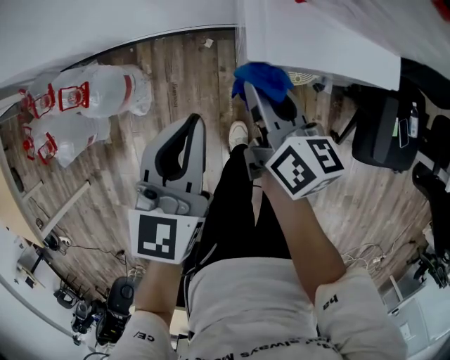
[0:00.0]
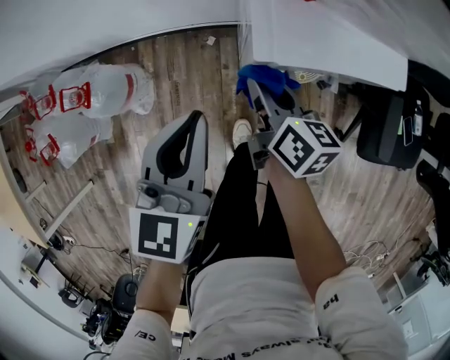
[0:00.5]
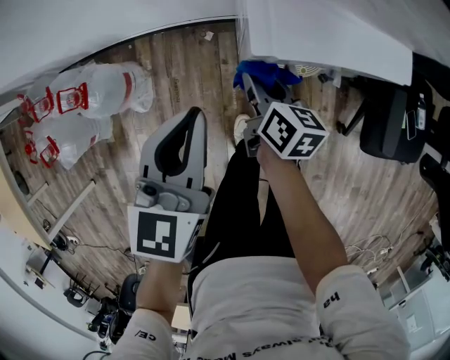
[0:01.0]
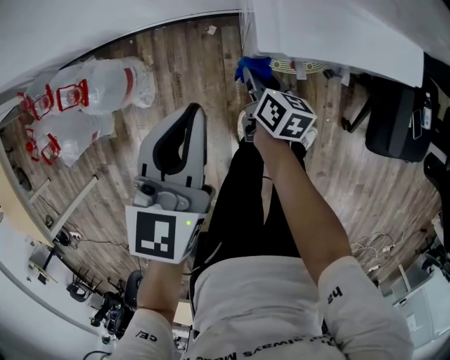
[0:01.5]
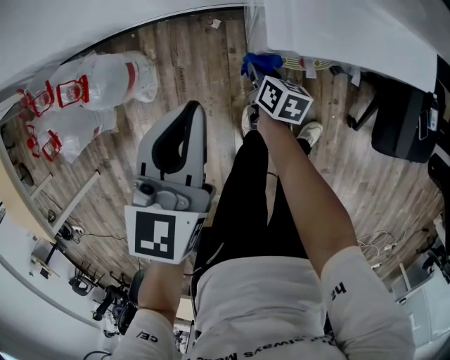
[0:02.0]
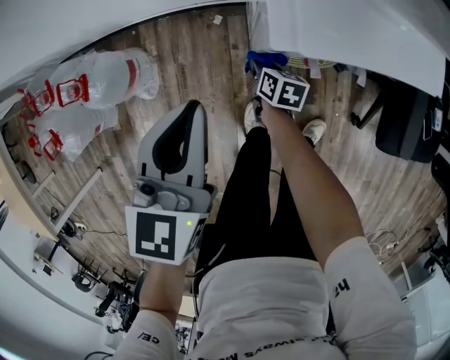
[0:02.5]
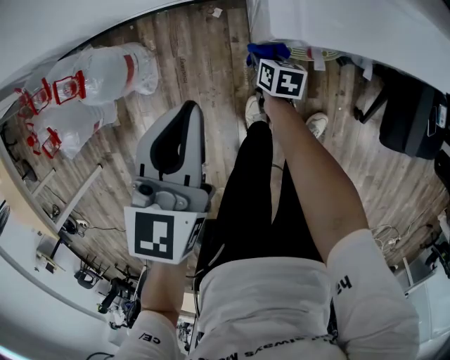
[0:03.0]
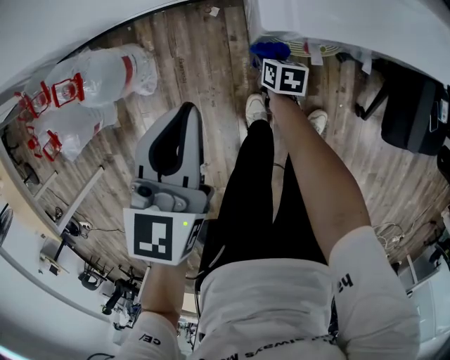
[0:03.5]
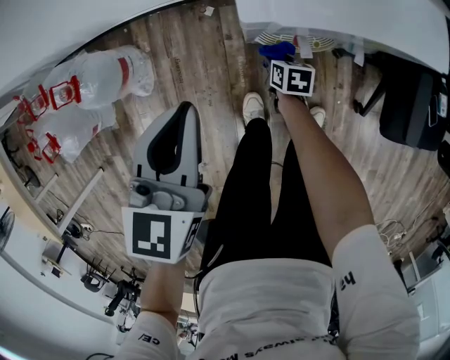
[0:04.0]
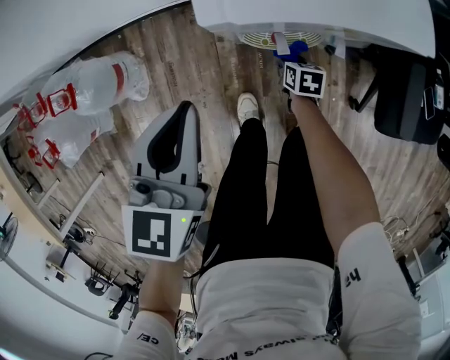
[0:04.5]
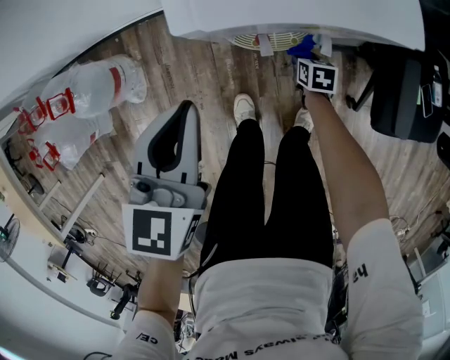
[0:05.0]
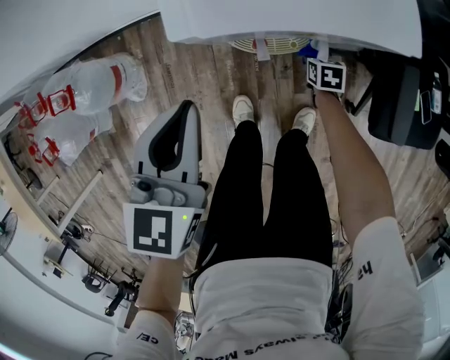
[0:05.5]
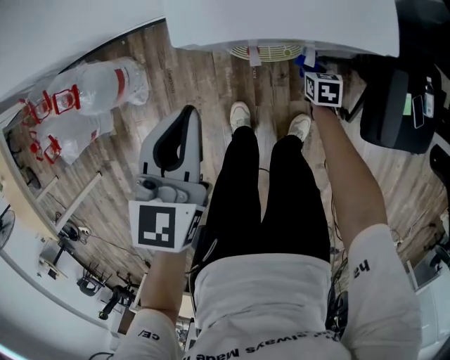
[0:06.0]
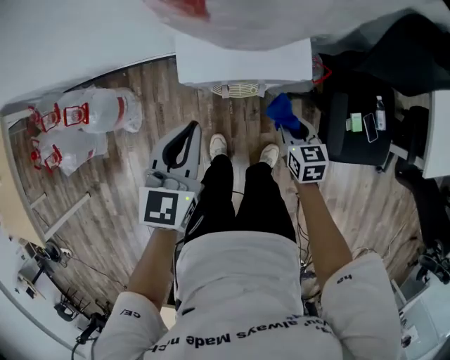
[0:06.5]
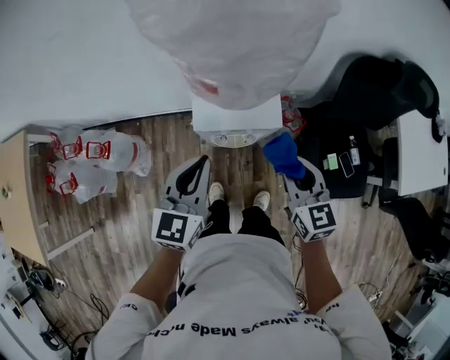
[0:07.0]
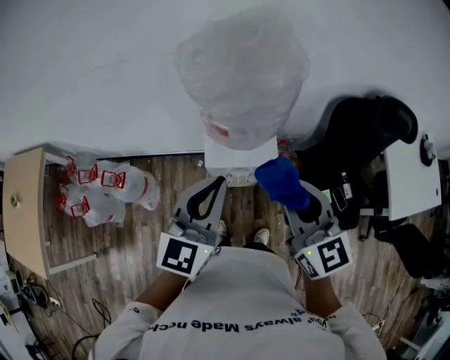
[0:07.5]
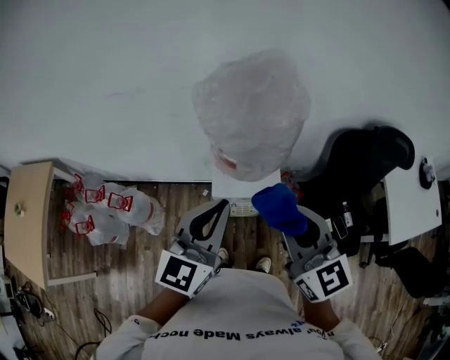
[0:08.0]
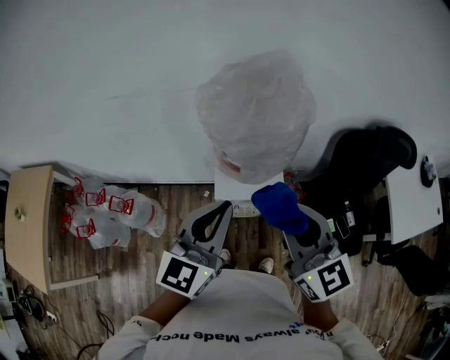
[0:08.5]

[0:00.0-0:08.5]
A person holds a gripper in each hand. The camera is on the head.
0:00.0 to 0:02.0: The right gripper is displaced downward by approximately 25 cm, and changes its angle by roughly 20 degrees.
0:02.0 to 0:04.0: The right gripper travels downward and to the right by approximately 15 cm, and rotates approximately 20 degrees.
0:04.0 to 0:06.5: The right gripper goes some 35 cm upward and to the right, and turns by approximately 30 degrees. The left gripper heads to the right and upward, covering roughly 15 cm.
0:06.5 to 0:08.5: The right gripper shifts about 50 cm upward, and points its fingers approximately 40 degrees further upward; the left gripper goes some 35 cm upward, and changes its angle by about 20 degrees.

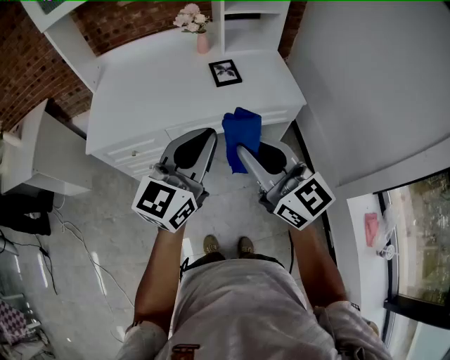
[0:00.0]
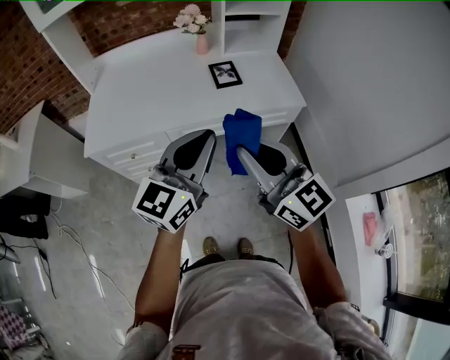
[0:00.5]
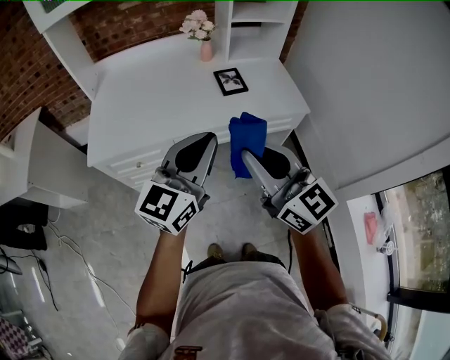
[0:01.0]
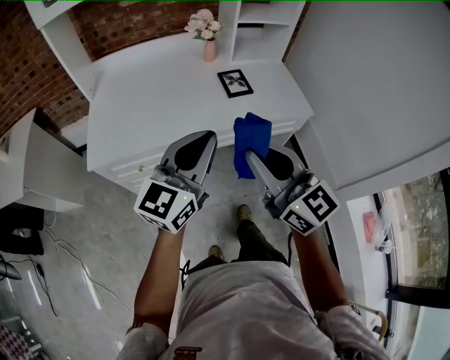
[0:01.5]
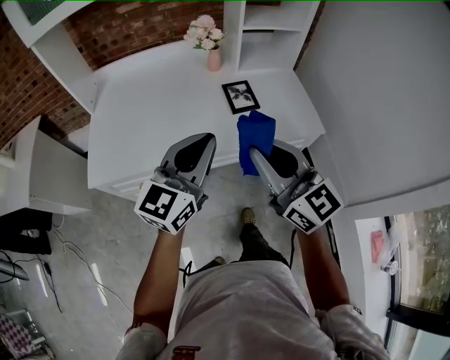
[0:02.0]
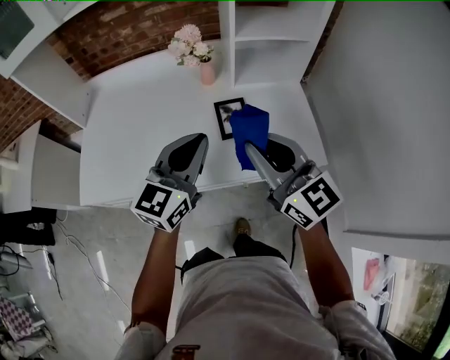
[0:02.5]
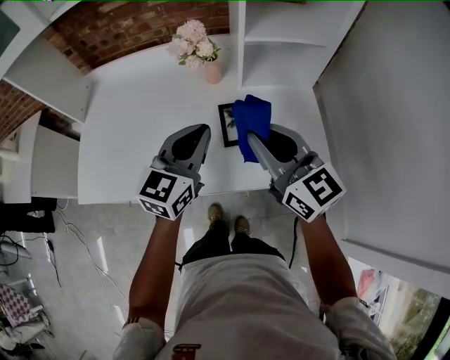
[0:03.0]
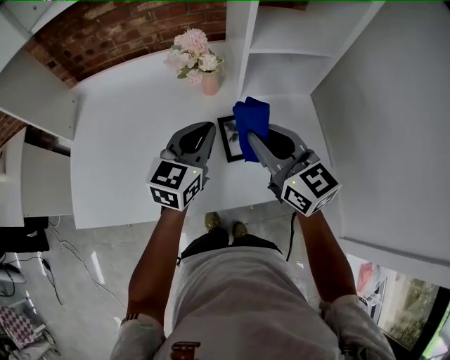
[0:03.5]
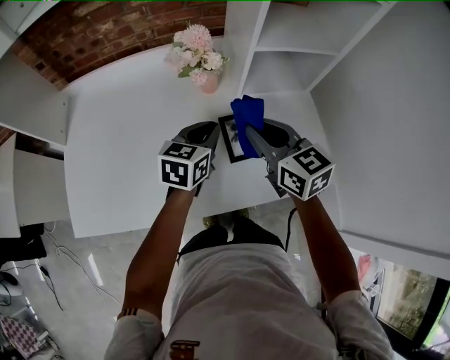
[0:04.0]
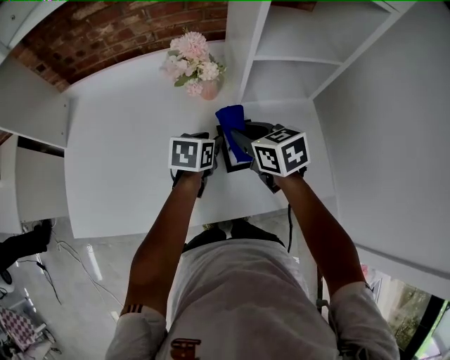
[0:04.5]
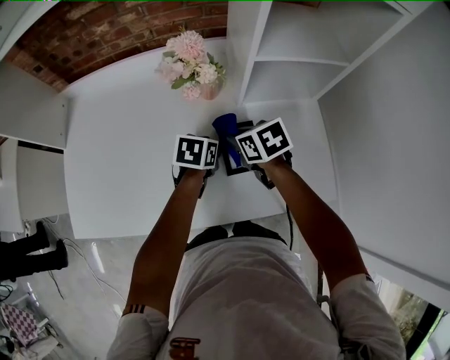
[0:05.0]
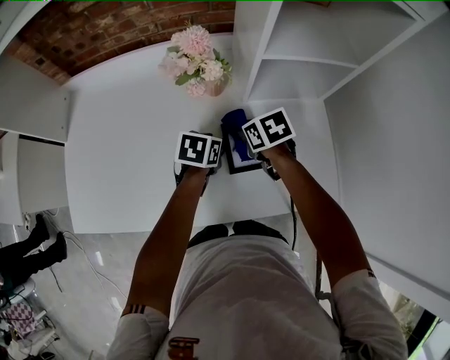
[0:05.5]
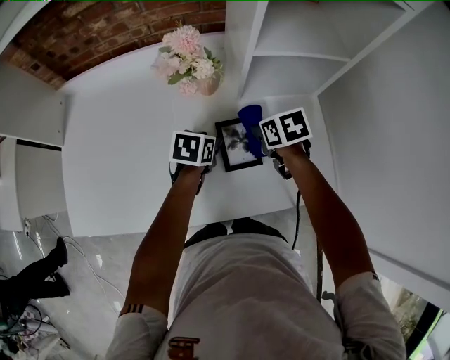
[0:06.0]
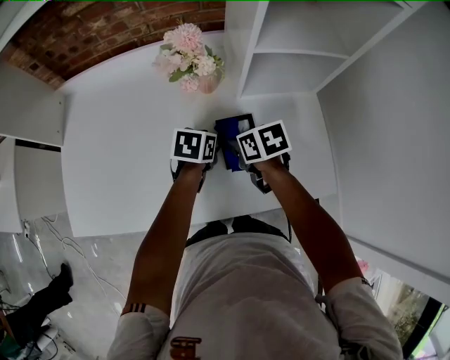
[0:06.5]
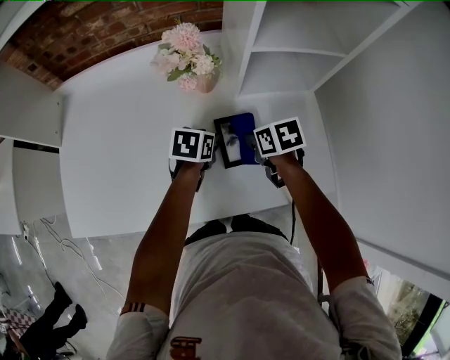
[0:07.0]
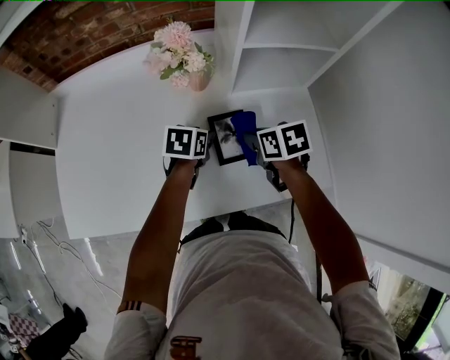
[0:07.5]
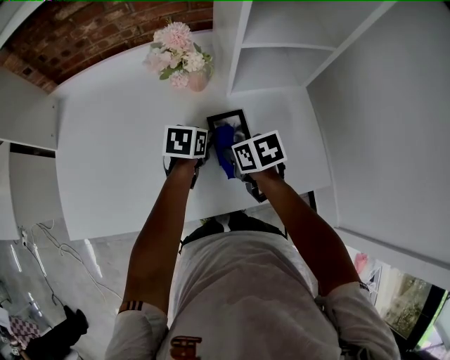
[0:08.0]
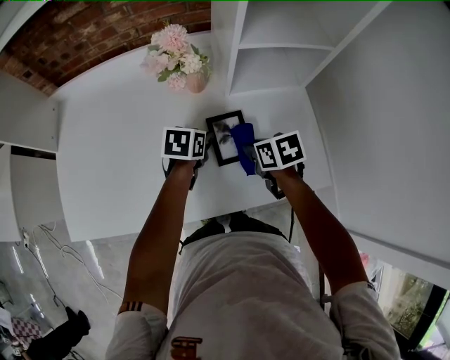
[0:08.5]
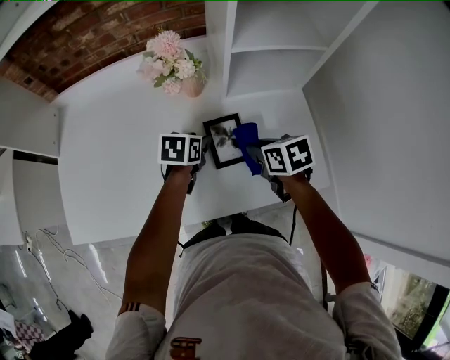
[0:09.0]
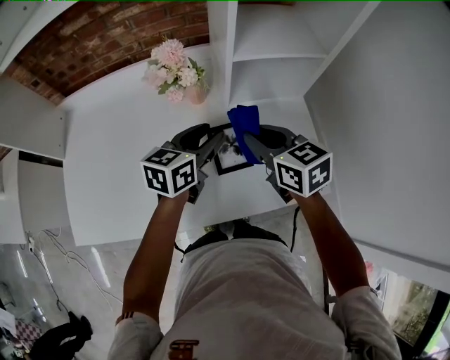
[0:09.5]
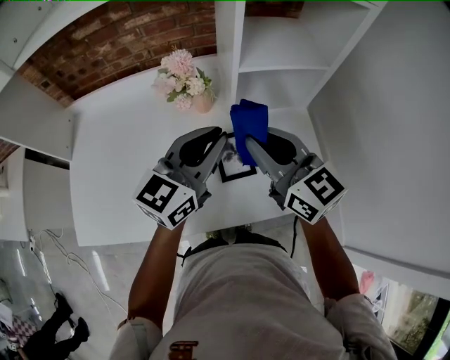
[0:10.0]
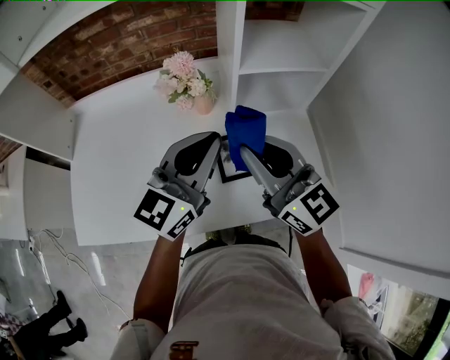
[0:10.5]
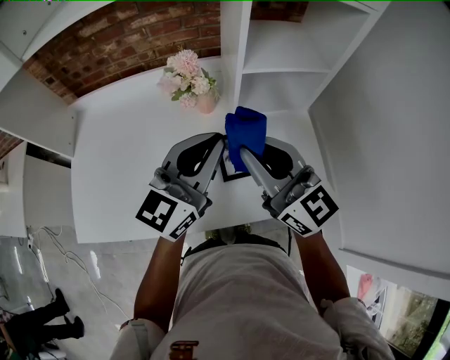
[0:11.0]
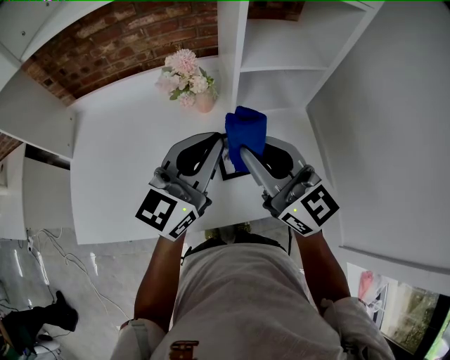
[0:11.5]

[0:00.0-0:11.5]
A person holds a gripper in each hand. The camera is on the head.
0:00.0 to 0:02.0: The right gripper goes roughly 15 cm forward, while the left gripper shifts some 15 cm forward and to the left.
0:02.0 to 0:04.0: The right gripper shifts some 30 cm forward, and changes its angle by some 20 degrees. The left gripper travels forward and downward by approximately 35 cm, and tilts its fingers roughly 30 degrees downward.
0:04.0 to 0:06.0: The left gripper shifts approximately 10 cm downward, changes its angle by roughly 30 degrees, and opens. The right gripper moves downward and forward, some 20 cm, and points its fingers roughly 40 degrees further downward.
0:06.0 to 0:07.5: The right gripper heads backward, covering roughly 5 cm.
0:07.5 to 0:09.5: Both grippers travel together upward, about 15 cm. The left gripper tilts its fingers some 30 degrees upward; the right gripper changes its angle by about 30 degrees.
0:09.5 to 0:11.5: The two grippers go about 15 cm upward and backward. The right gripper tilts its fingers roughly 30 degrees upward; the left gripper turns by roughly 30 degrees, and closes.

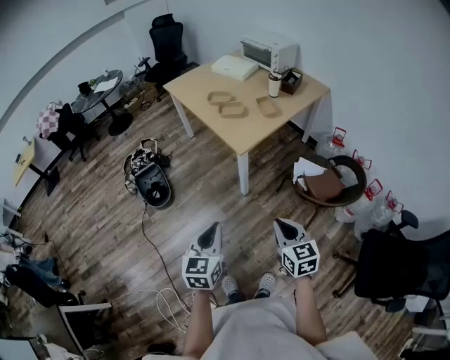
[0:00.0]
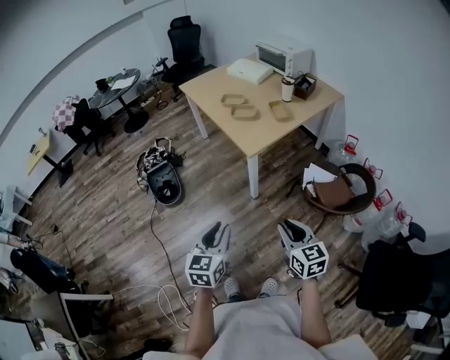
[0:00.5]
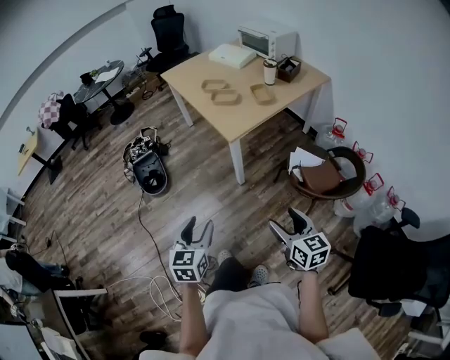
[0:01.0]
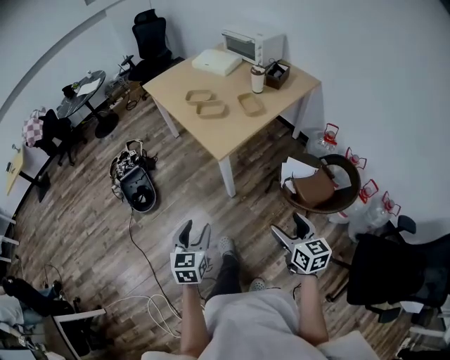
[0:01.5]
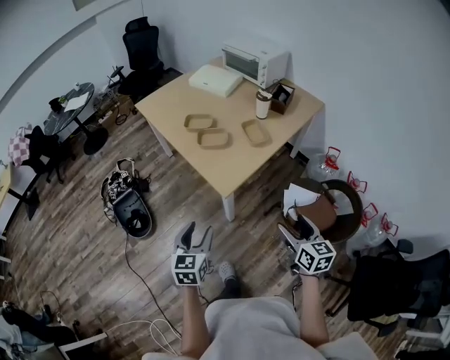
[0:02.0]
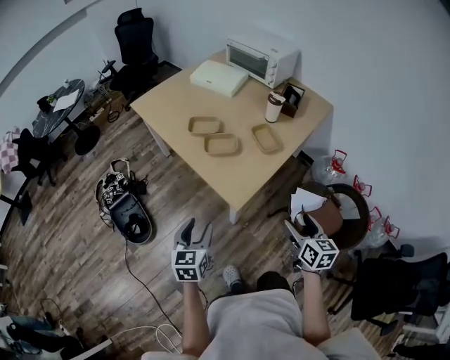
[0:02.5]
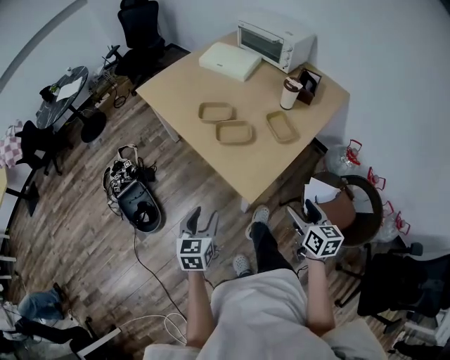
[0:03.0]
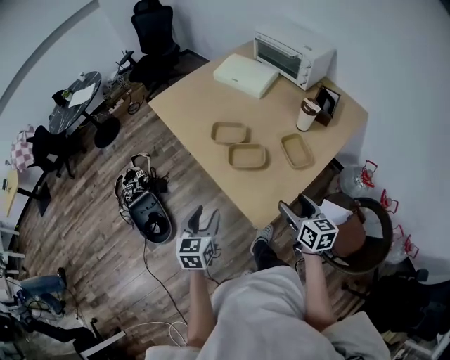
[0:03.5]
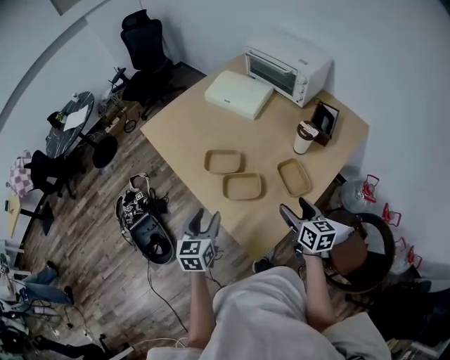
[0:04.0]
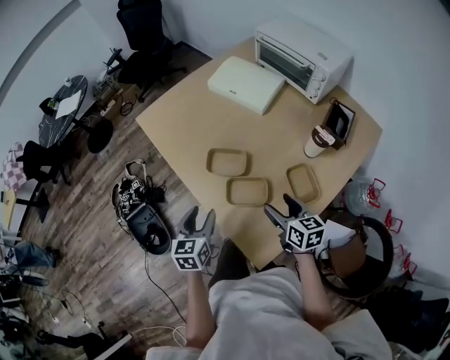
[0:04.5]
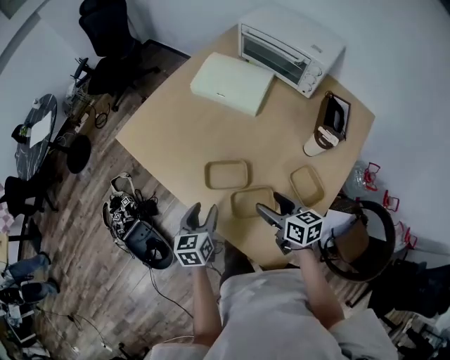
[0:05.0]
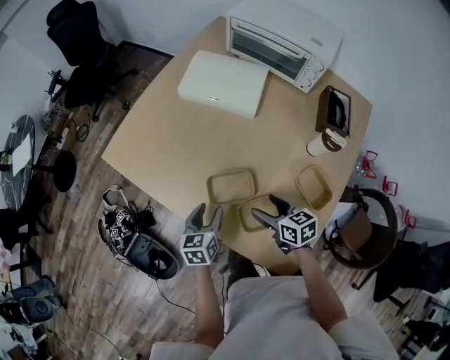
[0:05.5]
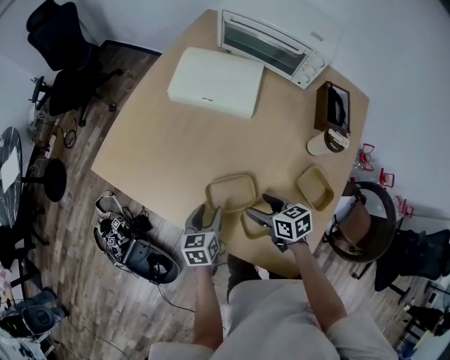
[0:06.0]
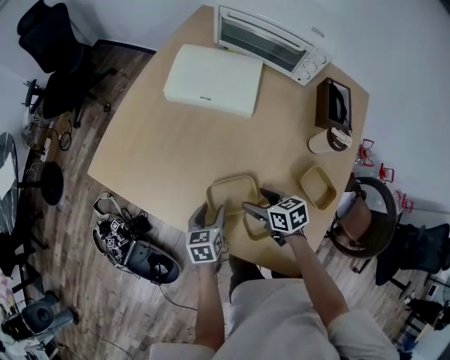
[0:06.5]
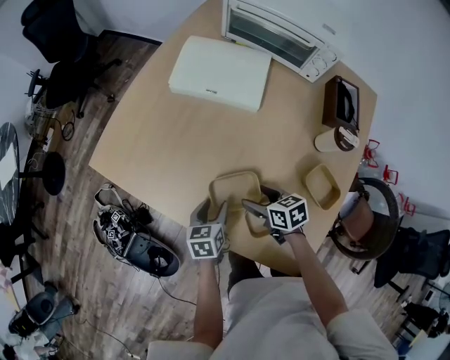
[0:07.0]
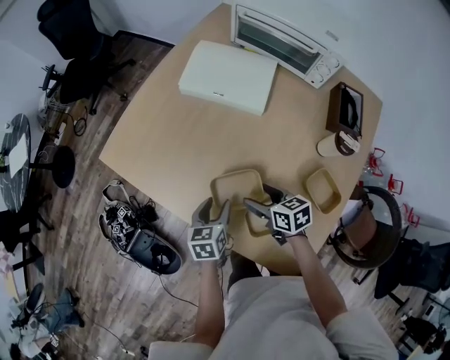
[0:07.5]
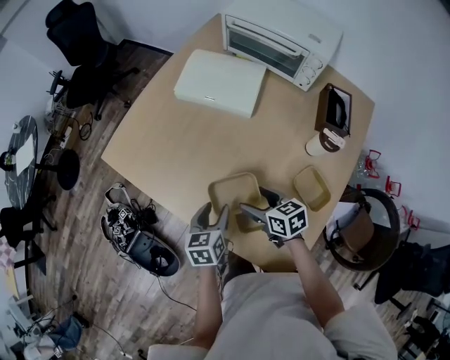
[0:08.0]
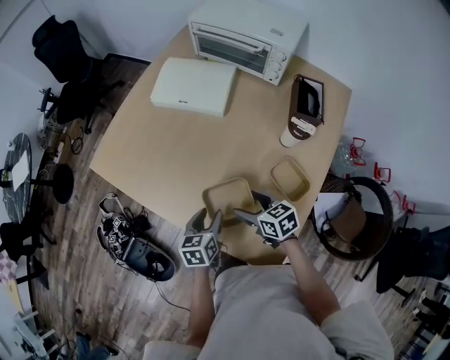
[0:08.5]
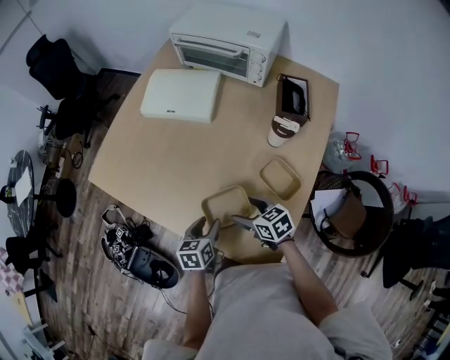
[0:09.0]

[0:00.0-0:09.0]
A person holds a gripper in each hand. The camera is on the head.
0:00.0 to 0:02.0: The left gripper shifts roughly 30 cm forward, and opens. Meanwhile the right gripper shifts about 30 cm forward and to the right, and opens.
0:02.0 to 0:04.5: Both grippers are carried forward, approximately 50 cm.
0:04.5 to 0:07.0: The left gripper shifts roughly 25 cm forward and downward, and swivels about 30 degrees; the right gripper shifts some 25 cm forward, downward and to the left, and rotates some 20 degrees.
0:07.0 to 0:09.0: Both grippers travel together backward, to the right and upward, some 15 cm.
